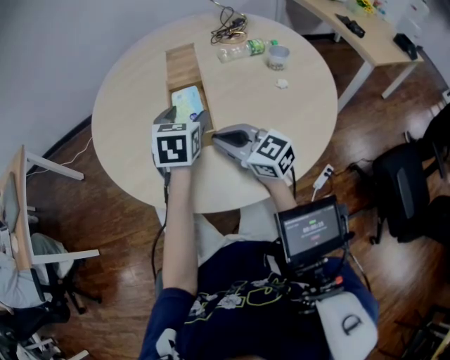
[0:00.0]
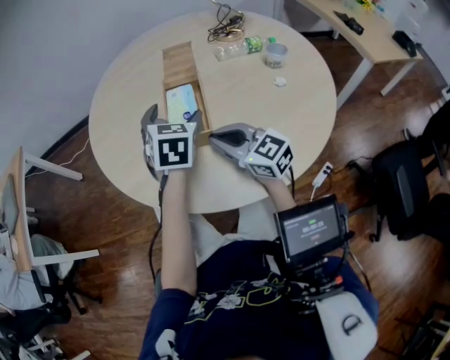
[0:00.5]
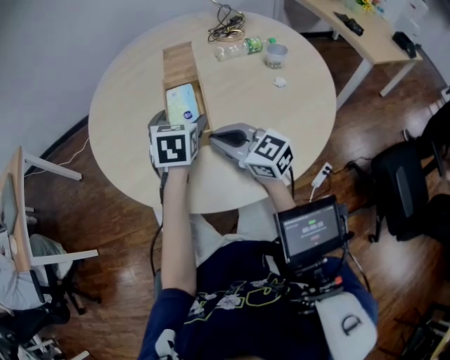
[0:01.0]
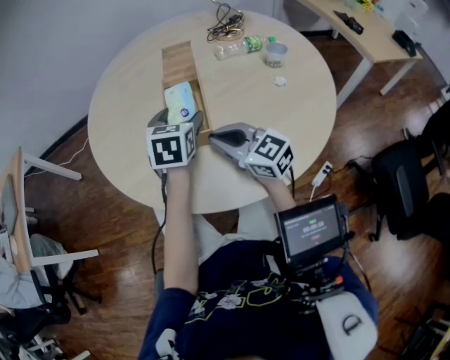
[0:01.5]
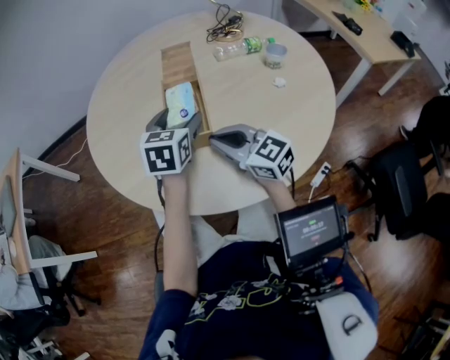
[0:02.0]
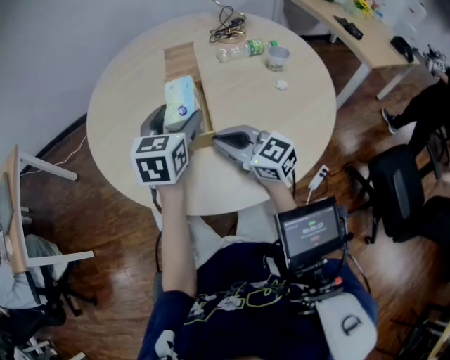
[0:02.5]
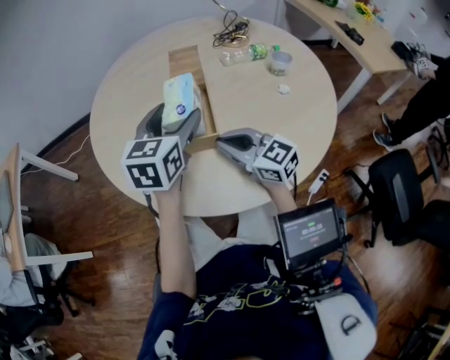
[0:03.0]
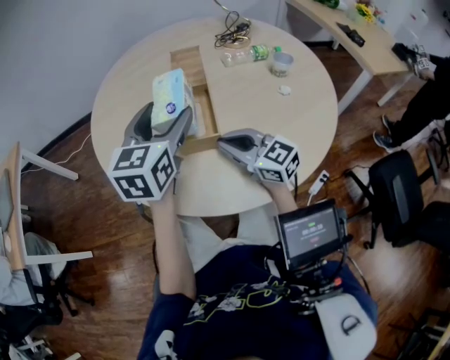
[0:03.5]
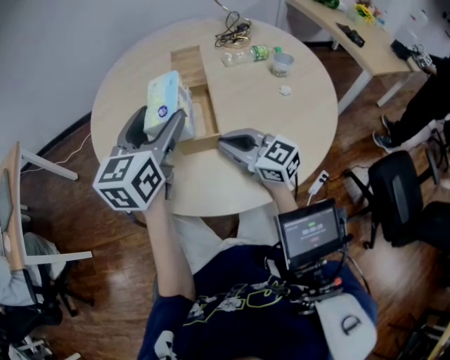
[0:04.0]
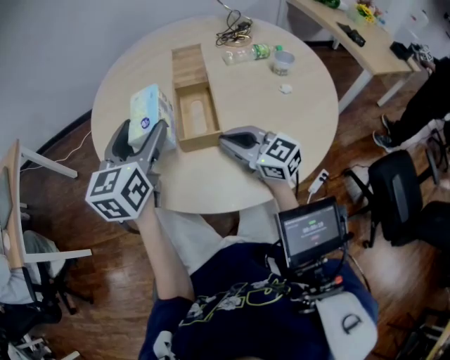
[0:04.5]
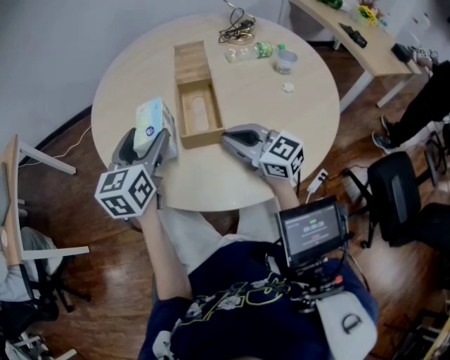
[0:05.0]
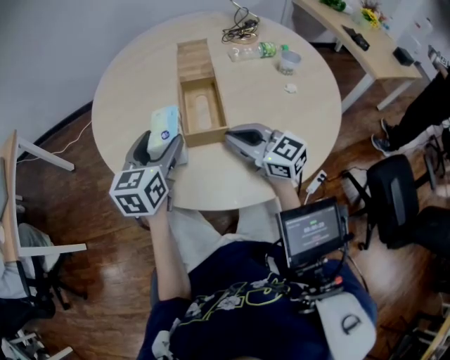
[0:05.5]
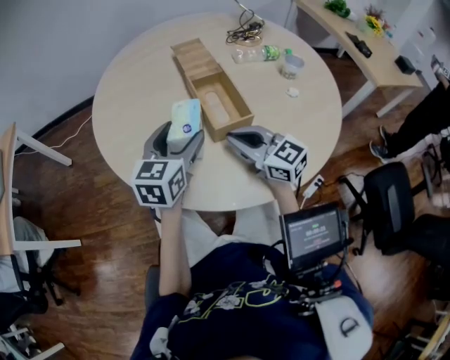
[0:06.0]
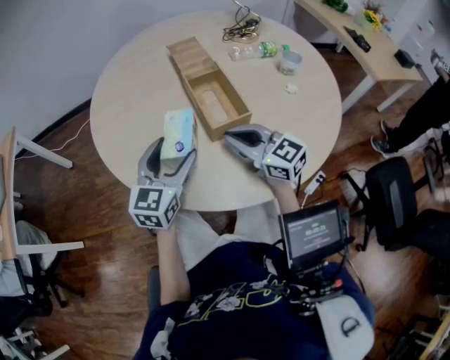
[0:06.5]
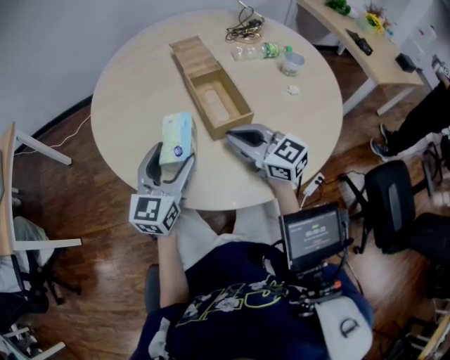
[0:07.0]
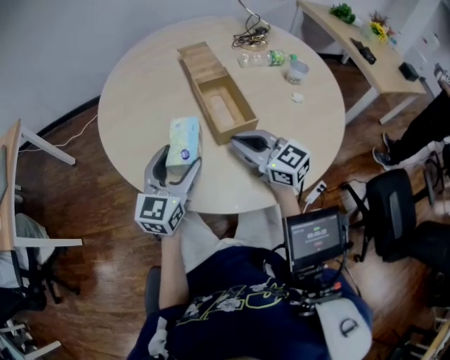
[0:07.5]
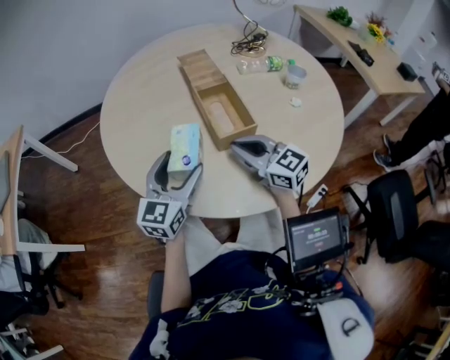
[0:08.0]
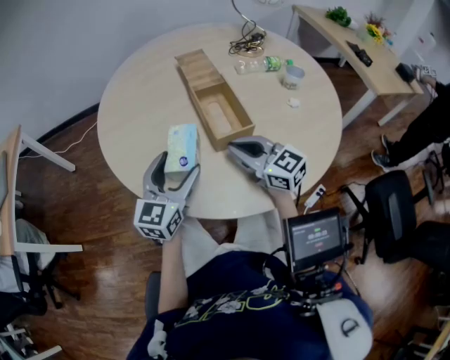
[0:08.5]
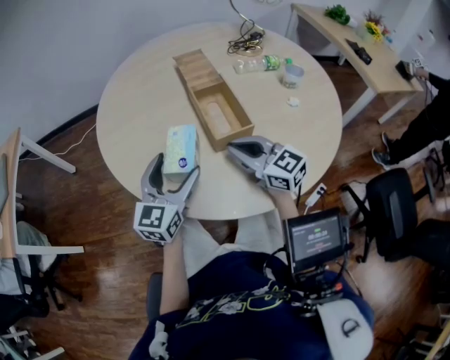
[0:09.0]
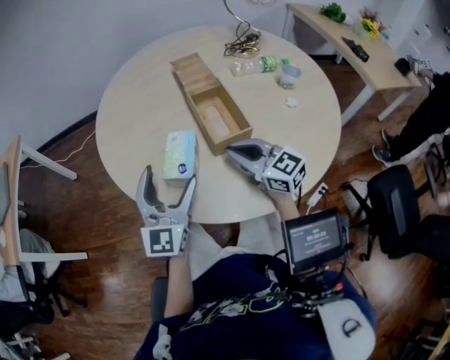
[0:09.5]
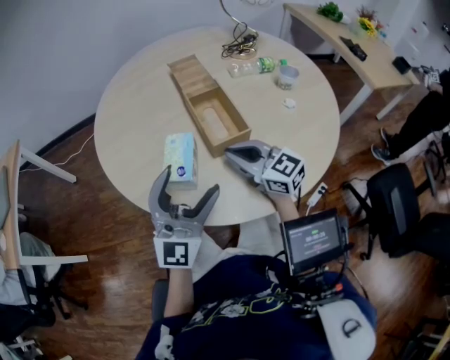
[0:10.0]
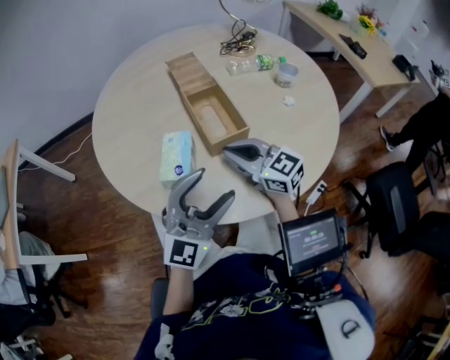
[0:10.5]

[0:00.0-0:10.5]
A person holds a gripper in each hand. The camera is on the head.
0:00.0 to 0:02.0: The grippers move only a little.
0:02.0 to 0:04.0: The left gripper goes some 15 cm upward and to the left, and turns by approximately 20 degrees.
0:04.0 to 0:06.5: The left gripper moves downward, some 10 cm.
0:06.5 to 0:08.5: The grippers make only small movements.
0:08.5 to 0:10.5: The left gripper shifts some 15 cm backward, to the right and upward, and rotates approximately 40 degrees.

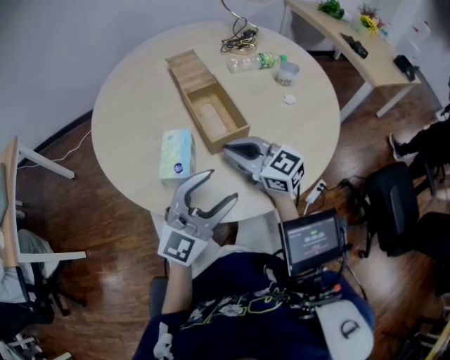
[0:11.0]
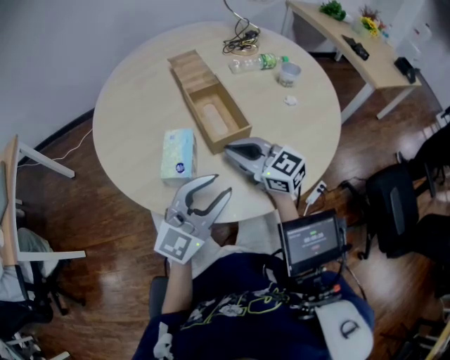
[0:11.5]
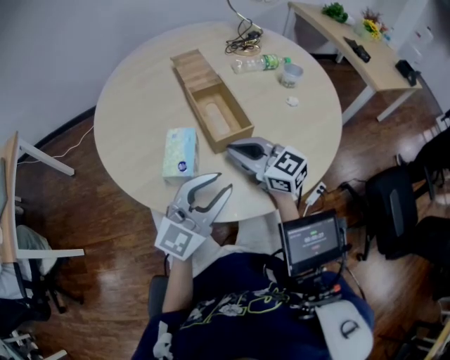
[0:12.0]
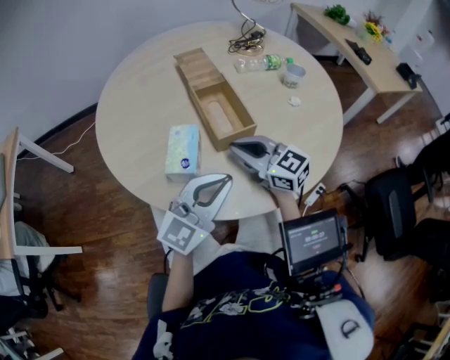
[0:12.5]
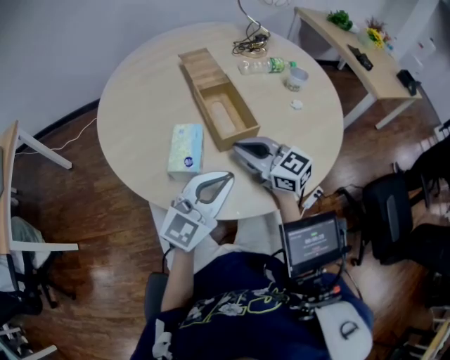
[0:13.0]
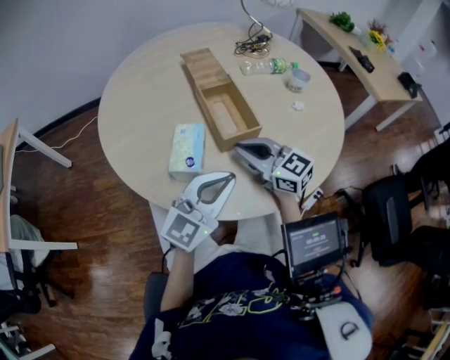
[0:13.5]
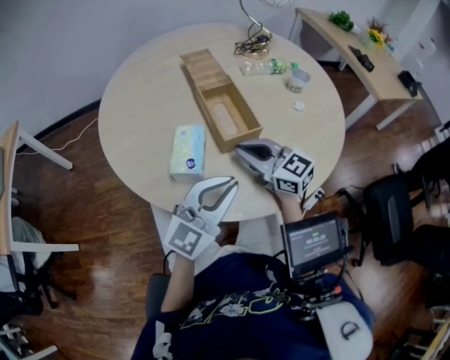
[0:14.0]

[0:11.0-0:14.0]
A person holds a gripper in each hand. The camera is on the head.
0:11.0 to 0:12.5: The left gripper closes.
0:12.5 to 0:14.0: The two grippers keep their place.

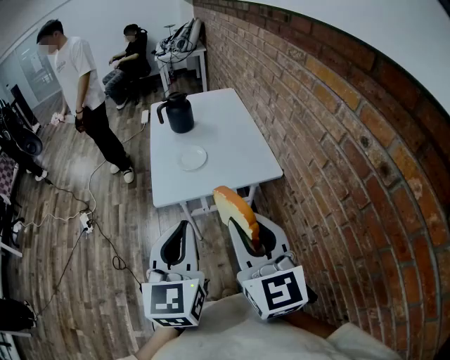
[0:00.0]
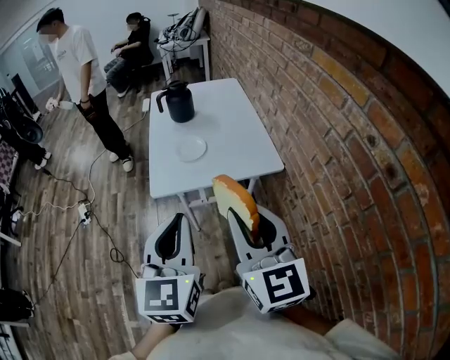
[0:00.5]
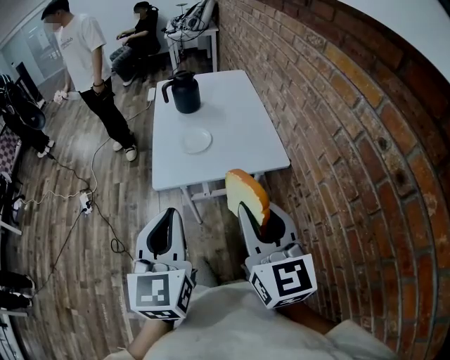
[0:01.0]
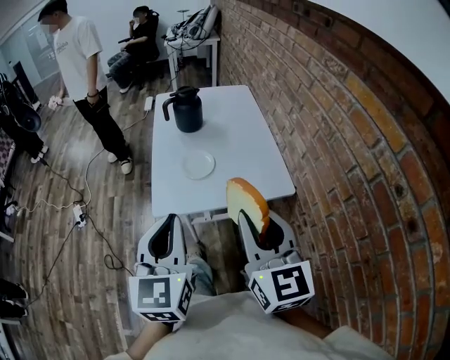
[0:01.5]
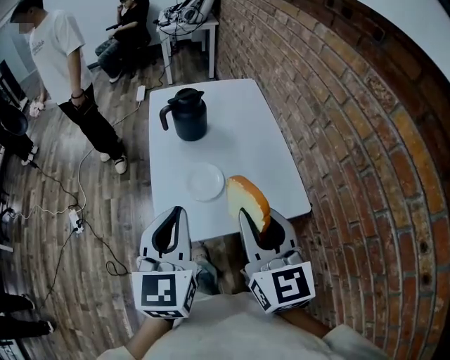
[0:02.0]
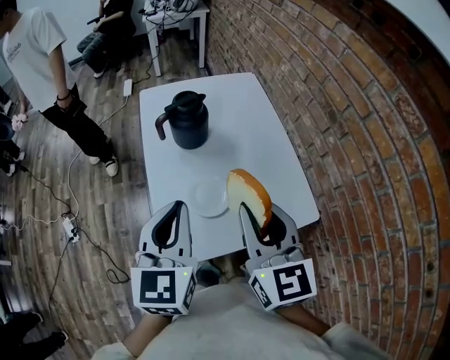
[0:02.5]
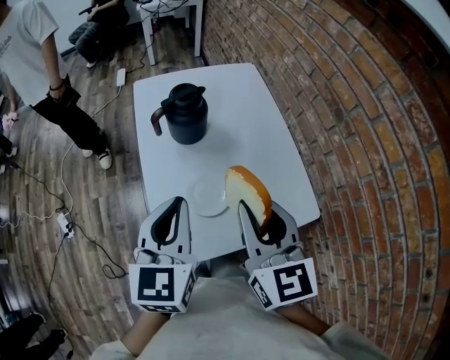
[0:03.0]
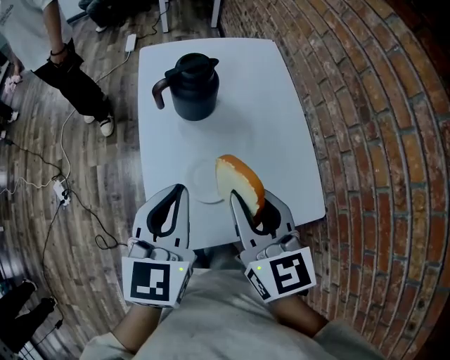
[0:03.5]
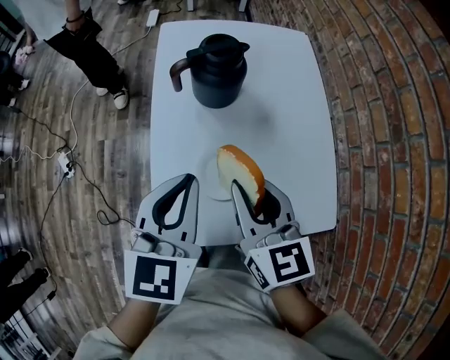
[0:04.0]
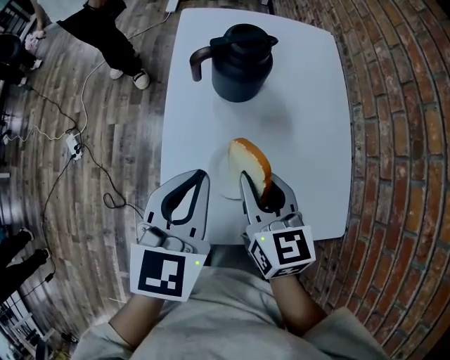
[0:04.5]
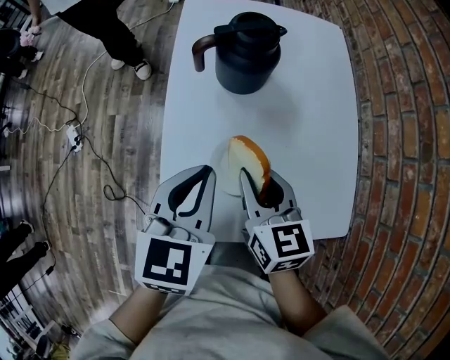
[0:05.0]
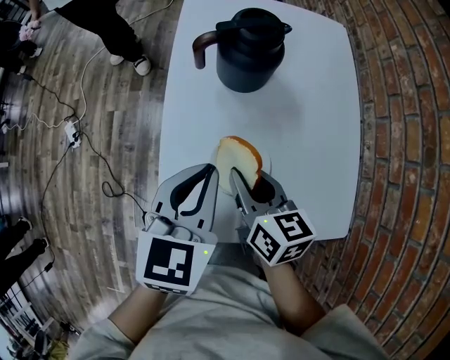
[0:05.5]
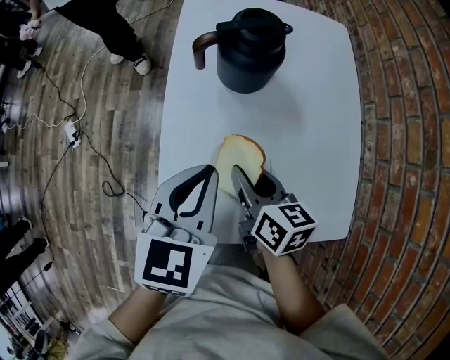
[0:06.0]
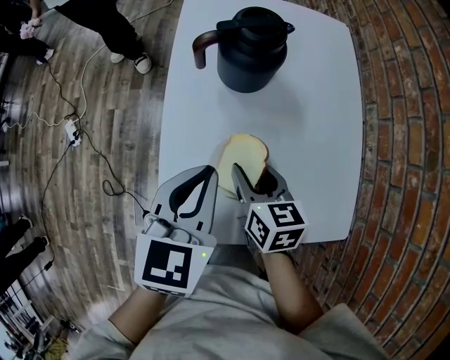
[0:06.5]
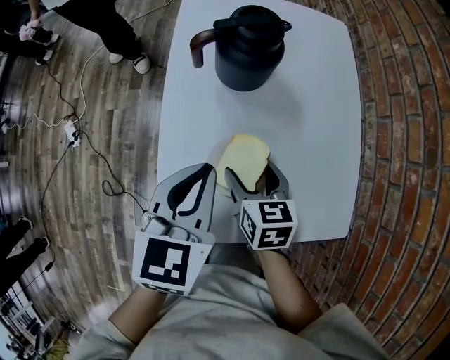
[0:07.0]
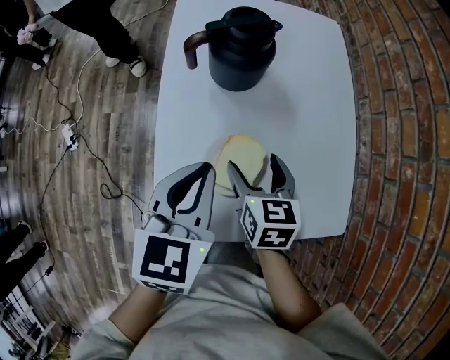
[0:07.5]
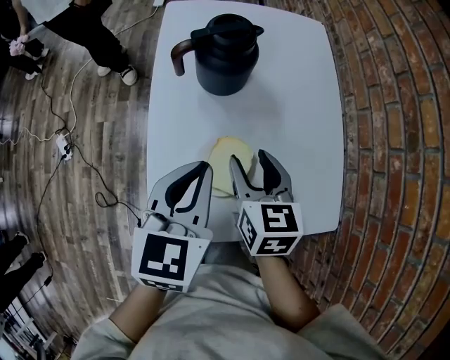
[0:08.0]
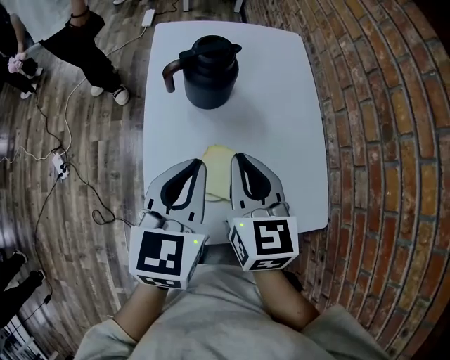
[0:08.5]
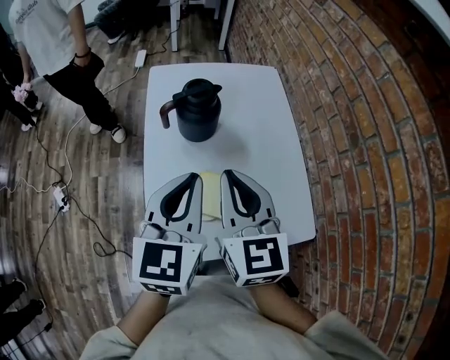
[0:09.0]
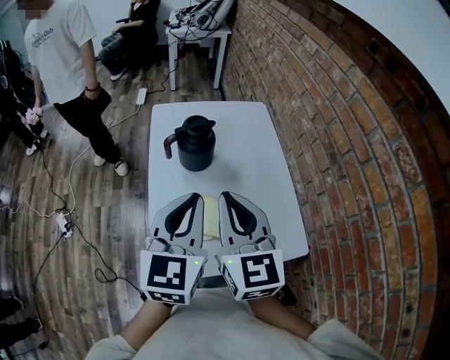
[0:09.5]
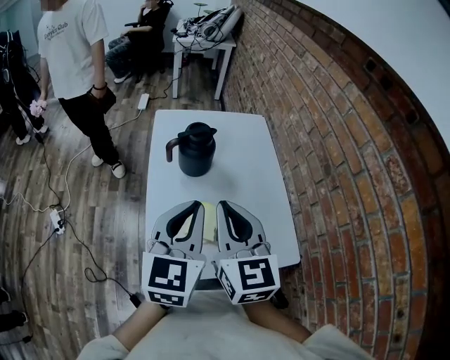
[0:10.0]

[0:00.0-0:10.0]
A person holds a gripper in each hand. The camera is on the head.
0:00.0 to 0:02.0: The two grippers go some 30 cm forward.
0:02.0 to 0:04.0: Both grippers move forward and downward, some 20 cm.
0:04.0 to 0:06.0: The right gripper travels downward by roughly 15 cm, and swivels some 30 degrees. Meanwhile the left gripper goes about 5 cm downward.
0:06.0 to 0:08.0: The right gripper moves roughly 5 cm, rotates about 30 degrees, and opens, then closes again.
0:08.0 to 0:10.0: Both grippers travel together upward, about 20 cm. The right gripper turns by approximately 30 degrees, and closes its fingers, while the left gripper turns by about 20 degrees.

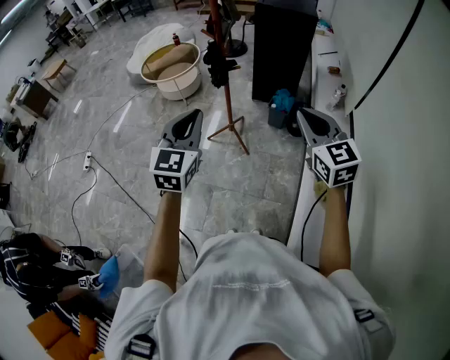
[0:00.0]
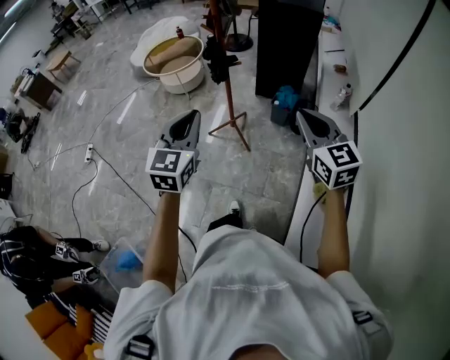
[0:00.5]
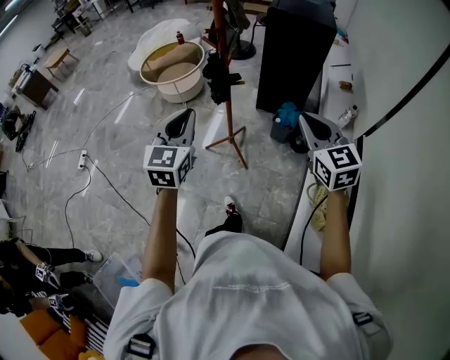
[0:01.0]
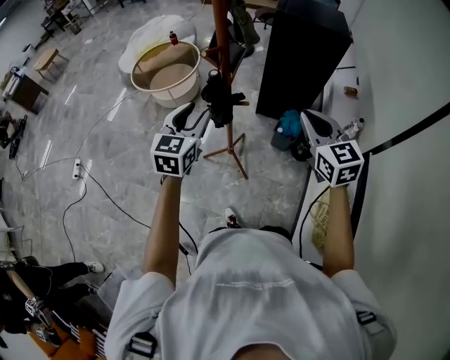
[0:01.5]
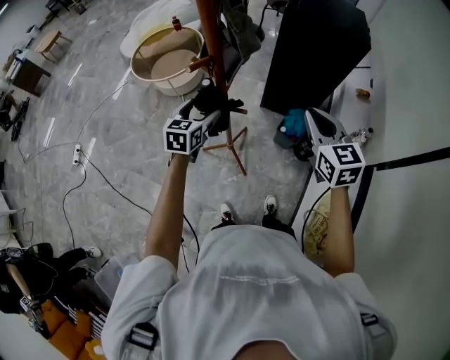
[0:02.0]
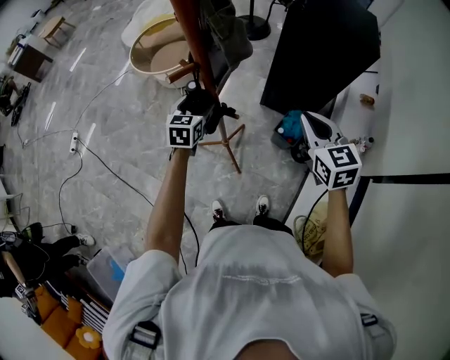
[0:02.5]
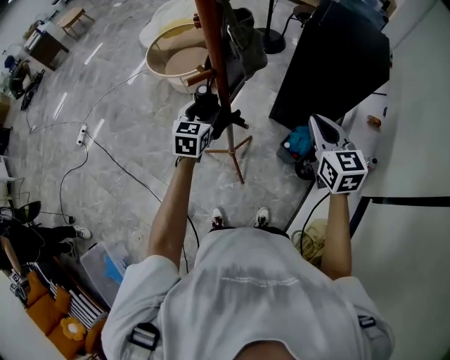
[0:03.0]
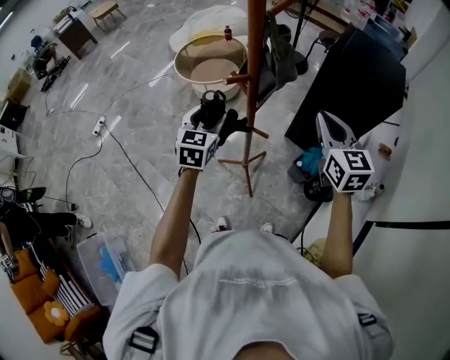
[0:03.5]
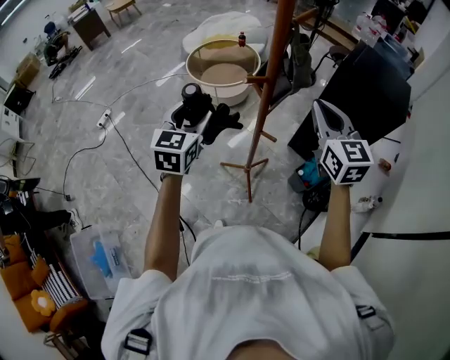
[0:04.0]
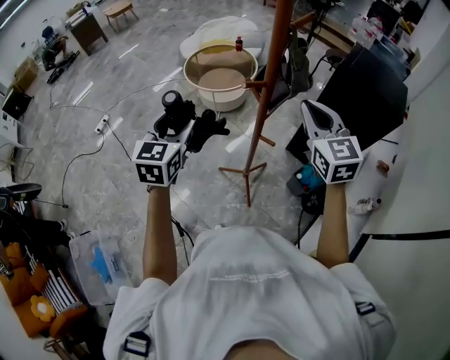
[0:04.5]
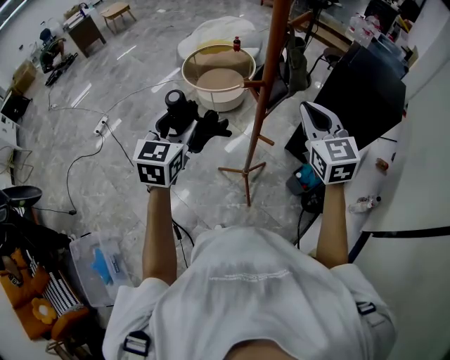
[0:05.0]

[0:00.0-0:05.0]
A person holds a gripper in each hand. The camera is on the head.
0:00.0 to 0:02.5: The two grippers travel together, forward, approximately 50 cm. The left gripper goes some 25 cm downward, rotates roughly 30 degrees, and opens.
0:02.5 to 0:05.0: The left gripper travels upward, to the left and backward by some 30 cm, and changes its angle by approximately 20 degrees. Meanwhile the right gripper heads to the left and upward, covering roughly 20 cm, and turns by about 20 degrees.
